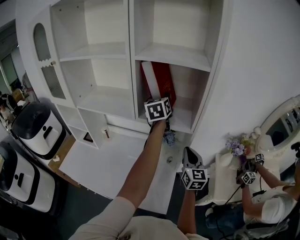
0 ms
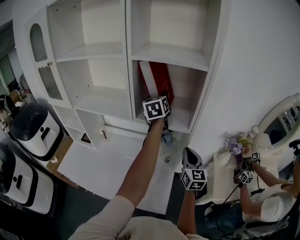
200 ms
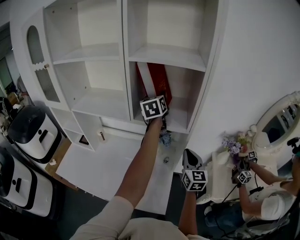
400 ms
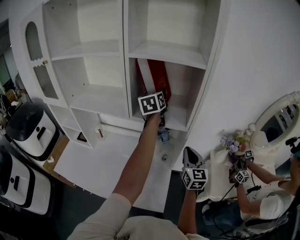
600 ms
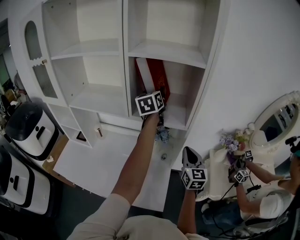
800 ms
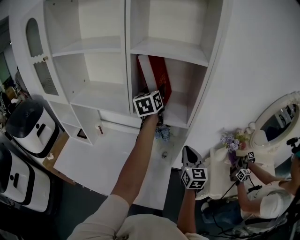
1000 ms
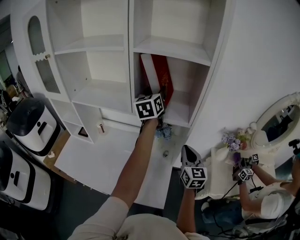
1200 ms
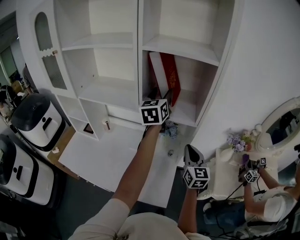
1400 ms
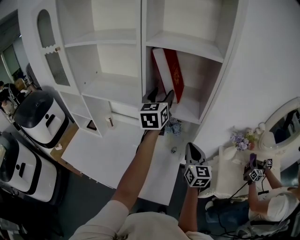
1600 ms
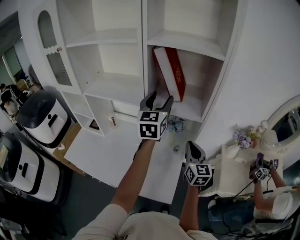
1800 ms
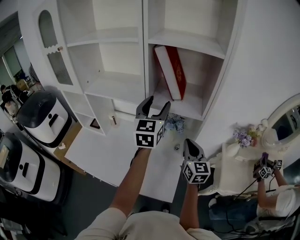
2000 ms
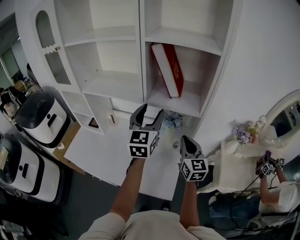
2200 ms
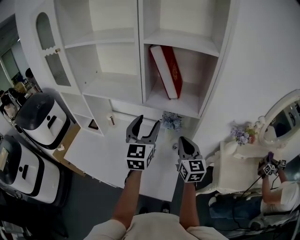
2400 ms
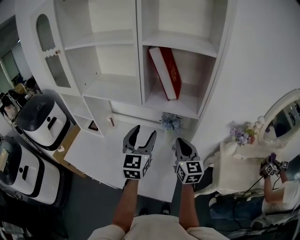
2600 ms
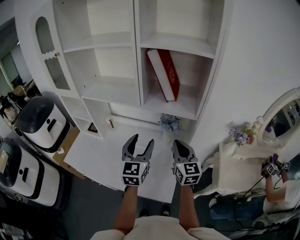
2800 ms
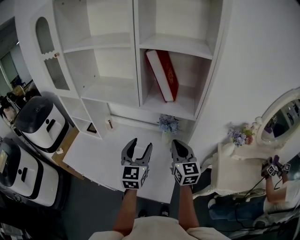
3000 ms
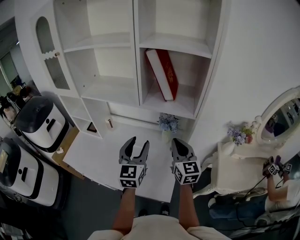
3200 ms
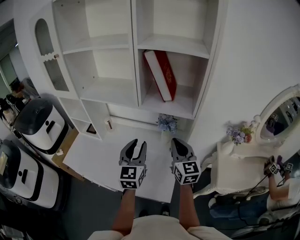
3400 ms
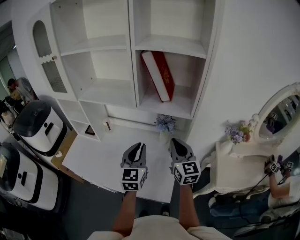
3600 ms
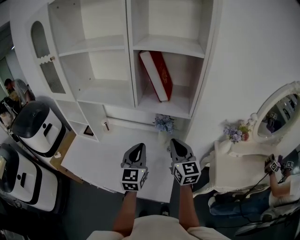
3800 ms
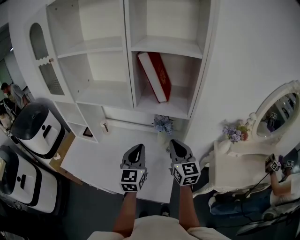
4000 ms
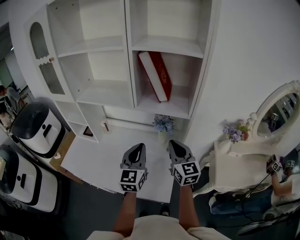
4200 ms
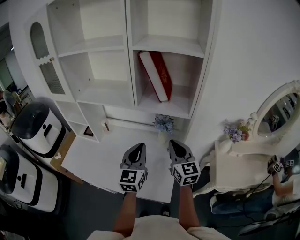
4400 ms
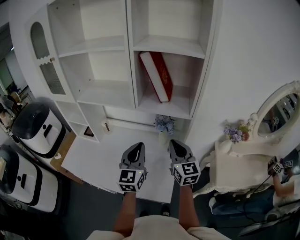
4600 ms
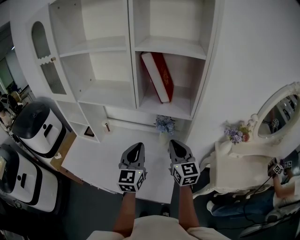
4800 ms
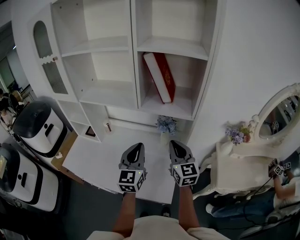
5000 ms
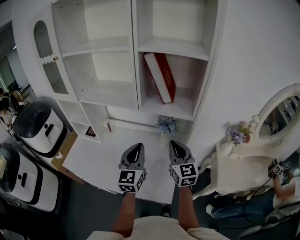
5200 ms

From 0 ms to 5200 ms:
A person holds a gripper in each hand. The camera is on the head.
From 0 ms to 1800 ms: The left gripper is displaced backward by approximately 10 cm.
From 1800 ms to 3400 ms: The right gripper moves to the left, about 5 cm. The left gripper is displaced backward and downward by some 20 cm, and closes up.
From 3400 ms to 5200 ms: The left gripper closes.

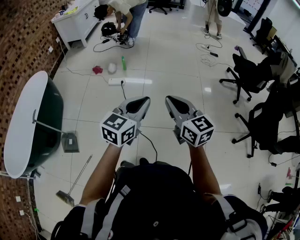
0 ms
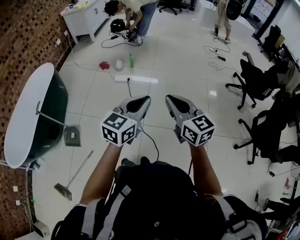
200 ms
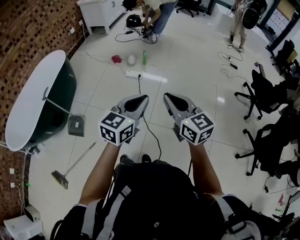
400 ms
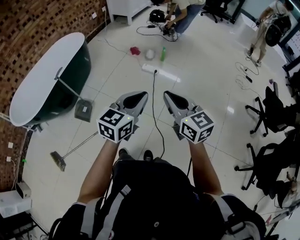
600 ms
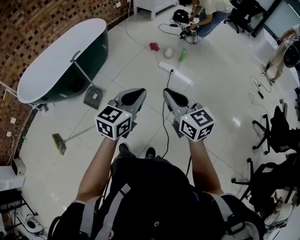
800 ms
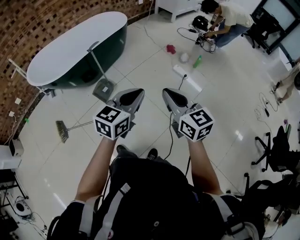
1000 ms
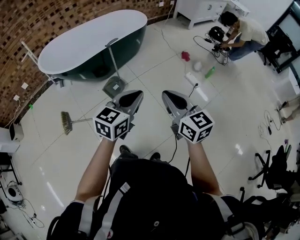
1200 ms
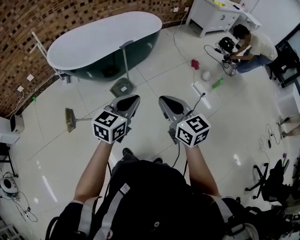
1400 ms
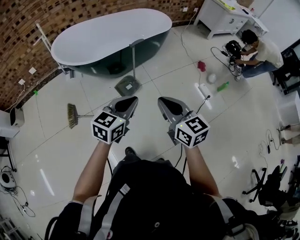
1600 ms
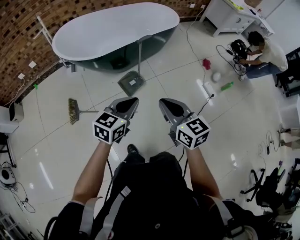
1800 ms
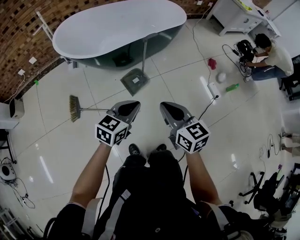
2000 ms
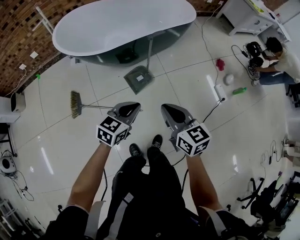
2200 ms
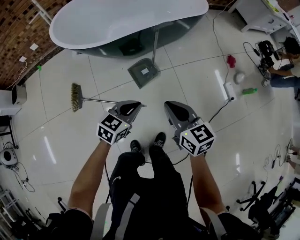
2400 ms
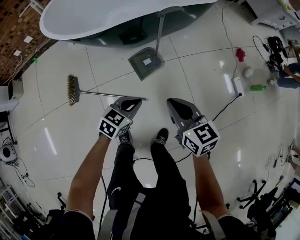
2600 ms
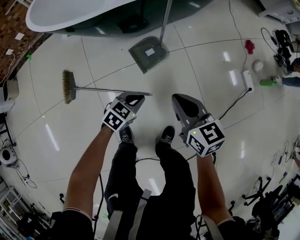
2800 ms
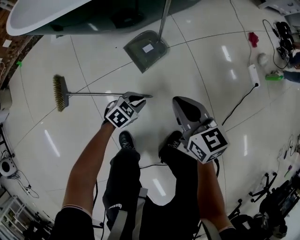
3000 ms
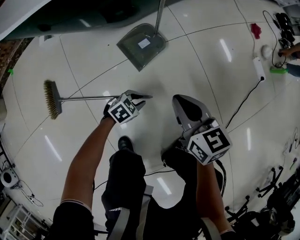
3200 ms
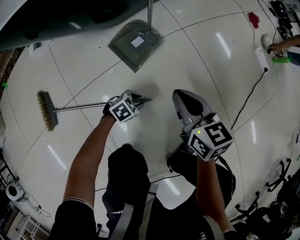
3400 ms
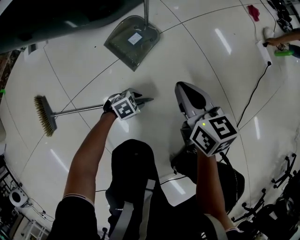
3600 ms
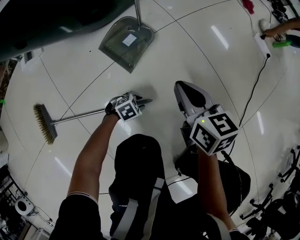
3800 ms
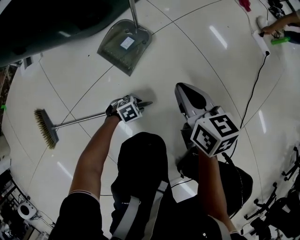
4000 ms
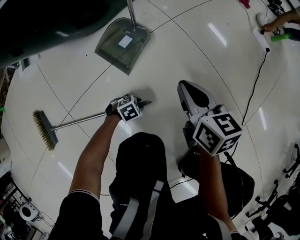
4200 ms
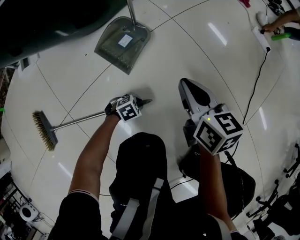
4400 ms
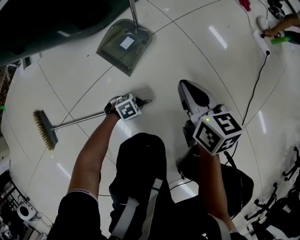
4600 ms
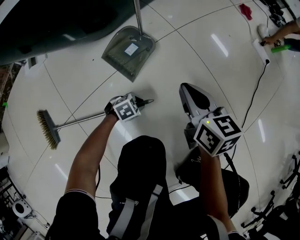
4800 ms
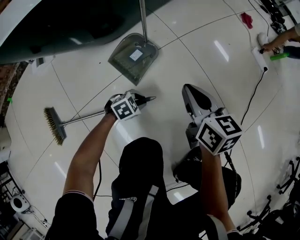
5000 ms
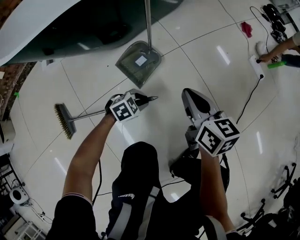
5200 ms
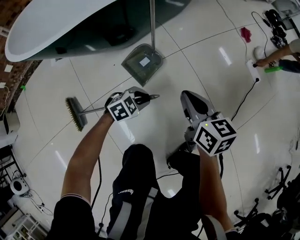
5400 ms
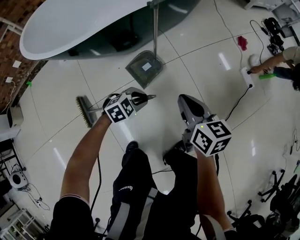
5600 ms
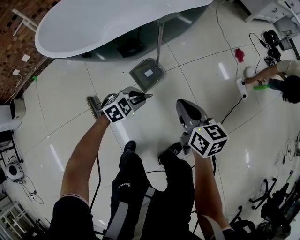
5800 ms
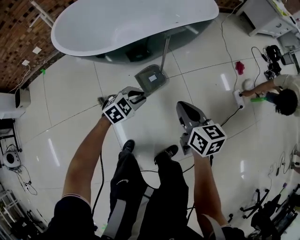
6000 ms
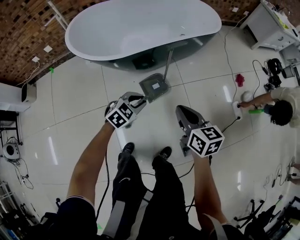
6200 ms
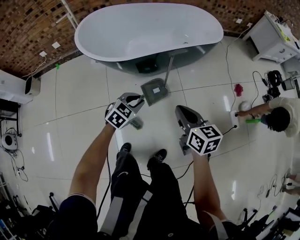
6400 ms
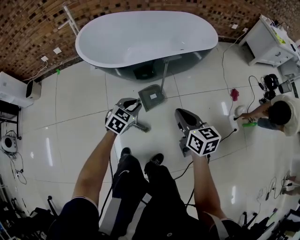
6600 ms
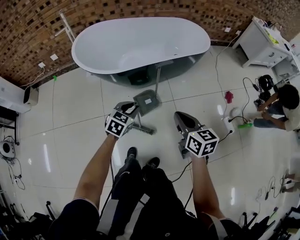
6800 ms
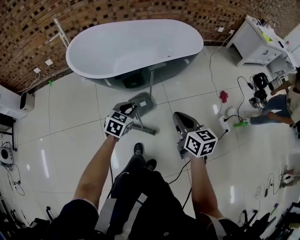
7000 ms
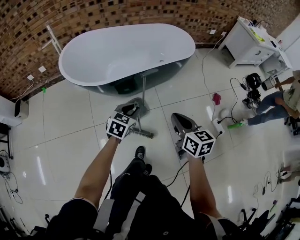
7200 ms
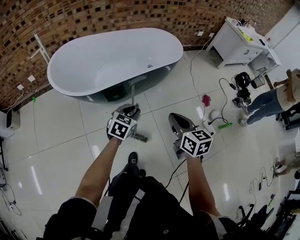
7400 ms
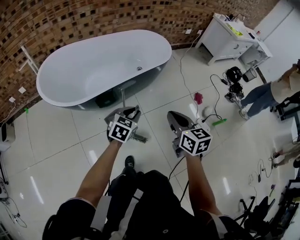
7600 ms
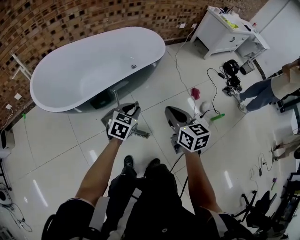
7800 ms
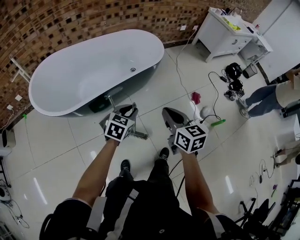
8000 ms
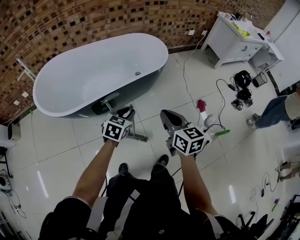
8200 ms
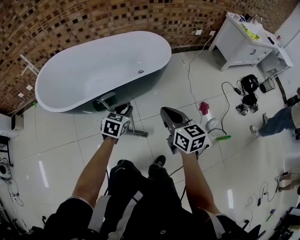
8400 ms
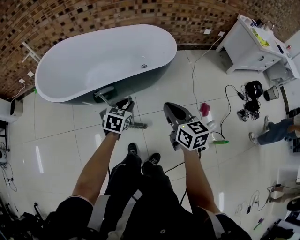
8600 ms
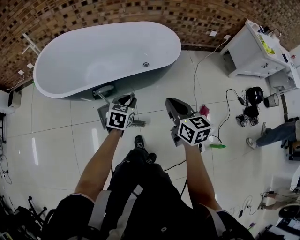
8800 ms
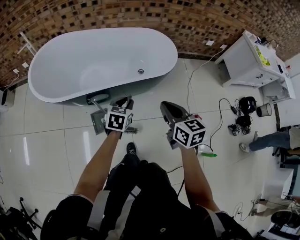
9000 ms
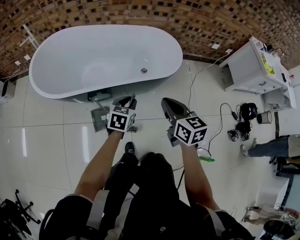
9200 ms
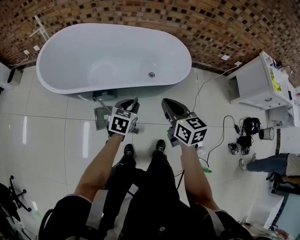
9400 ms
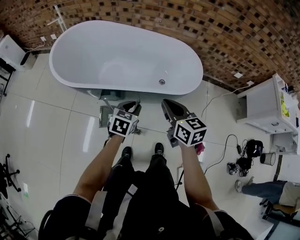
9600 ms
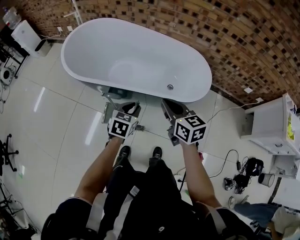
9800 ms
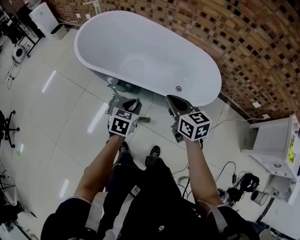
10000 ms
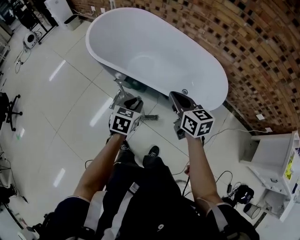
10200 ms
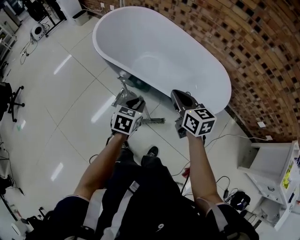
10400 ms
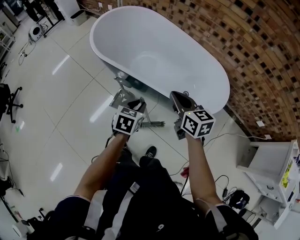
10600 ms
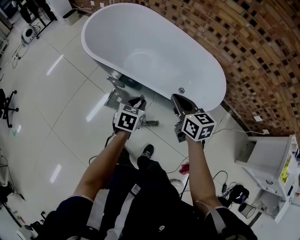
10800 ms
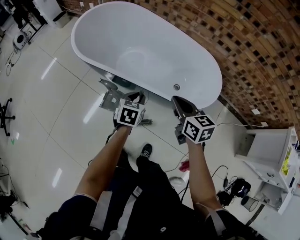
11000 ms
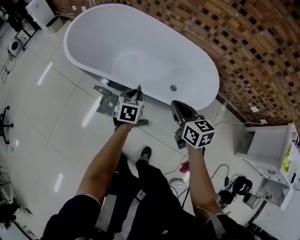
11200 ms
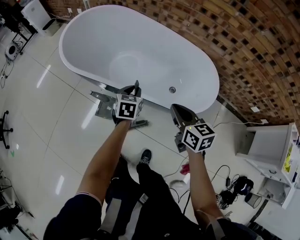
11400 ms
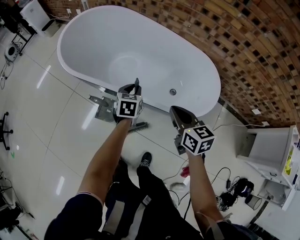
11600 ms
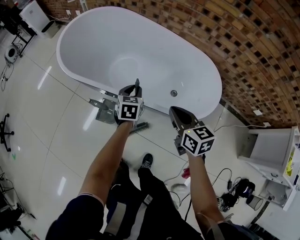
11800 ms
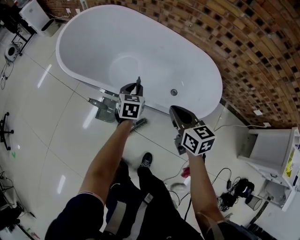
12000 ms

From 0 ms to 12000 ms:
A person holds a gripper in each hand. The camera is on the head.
From 0 ms to 1600 ms: The two grippers travel together, approximately 50 cm. The left gripper turns by roughly 60 degrees; the right gripper rotates about 60 degrees.
From 1600 ms to 3000 ms: The grippers both shift downward by approximately 50 cm. The left gripper tips its fingers downward by roughly 30 degrees.
From 3000 ms to 4400 ms: The right gripper shifts about 20 cm downward, and rotates approximately 30 degrees. Meanwhile the left gripper moves downward, roughly 30 cm, and rotates some 40 degrees.
From 4400 ms to 6000 ms: The two grippers go some 50 cm upward. The right gripper rotates approximately 20 degrees. The left gripper swivels approximately 40 degrees.
From 6000 ms to 7600 ms: The two grippers go some 25 cm upward, to the right and forward. The left gripper rotates about 30 degrees.
From 7600 ms to 9000 ms: The left gripper shifts by roughly 25 cm, and rotates approximately 30 degrees; the right gripper shifts by about 30 cm, and changes its angle by approximately 20 degrees.
From 9000 ms to 10400 ms: The right gripper changes place by some 20 cm, and turns by about 50 degrees. Meanwhile the left gripper changes its angle by approximately 40 degrees.
From 10400 ms to 12000 ms: The right gripper travels to the right and downward by approximately 10 cm; the left gripper goes roughly 25 cm forward, to the right and downward.

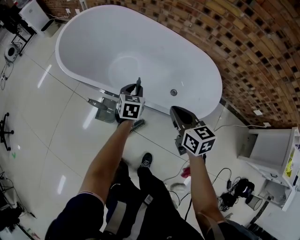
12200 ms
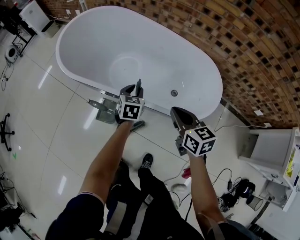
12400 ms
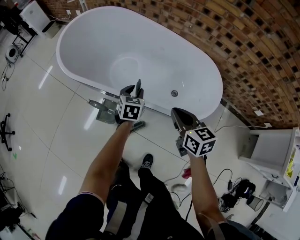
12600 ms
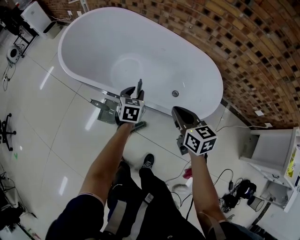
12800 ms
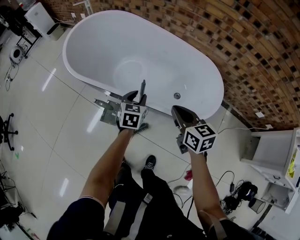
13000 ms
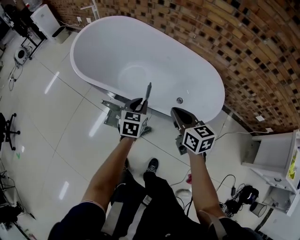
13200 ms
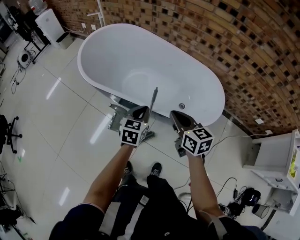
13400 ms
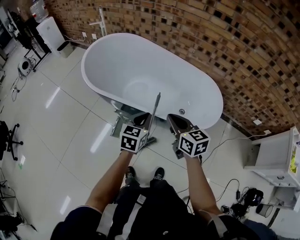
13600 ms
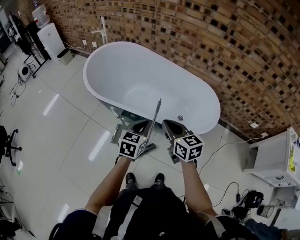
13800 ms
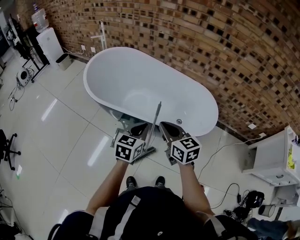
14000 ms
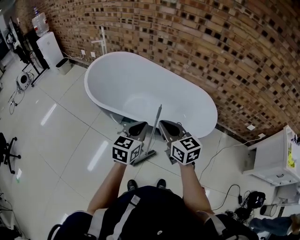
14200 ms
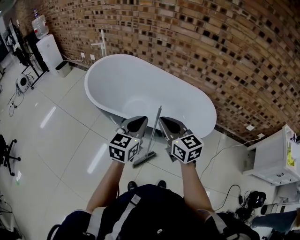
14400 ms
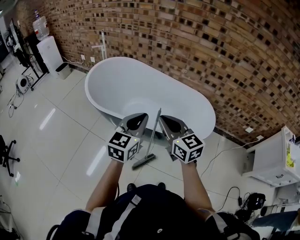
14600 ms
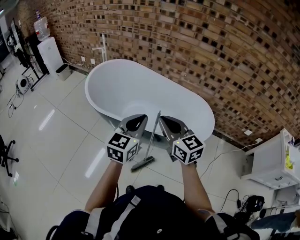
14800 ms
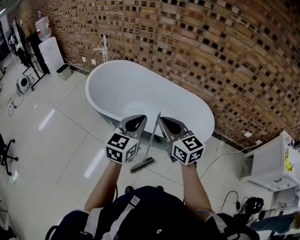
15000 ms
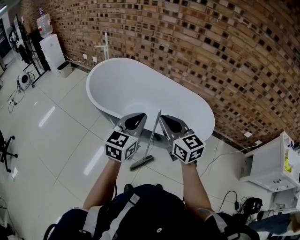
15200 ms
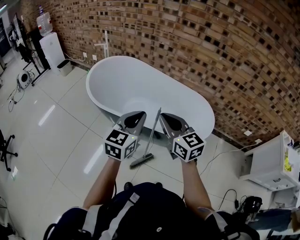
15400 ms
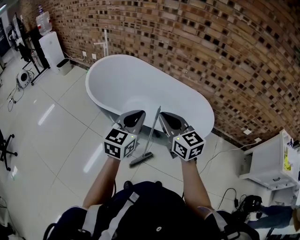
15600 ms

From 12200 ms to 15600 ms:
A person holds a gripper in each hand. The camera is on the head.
From 12200 ms to 13800 ms: The left gripper shifts approximately 25 cm upward, backward and to the left, and closes up; the right gripper travels to the left and upward by about 15 cm.
From 13800 ms to 15600 ms: Both grippers move upward, some 15 cm. The left gripper turns by about 20 degrees.

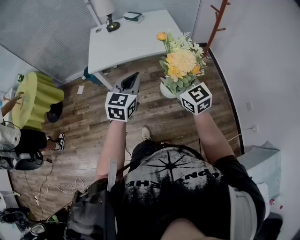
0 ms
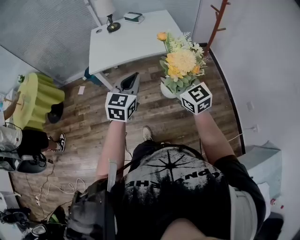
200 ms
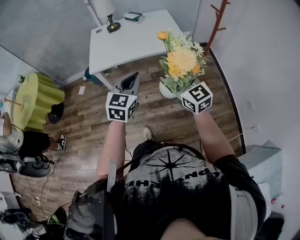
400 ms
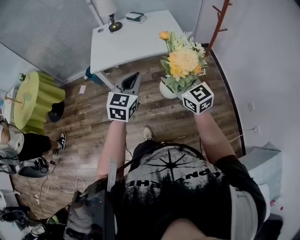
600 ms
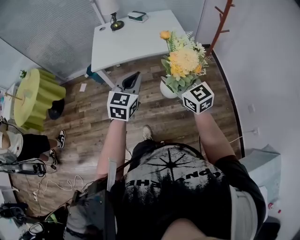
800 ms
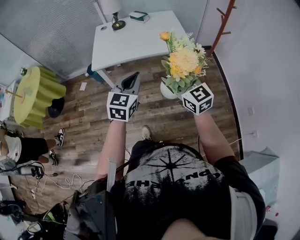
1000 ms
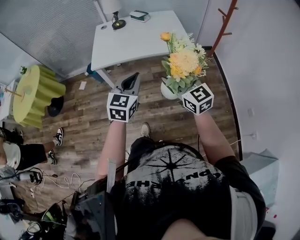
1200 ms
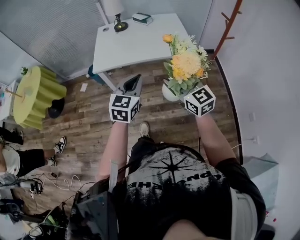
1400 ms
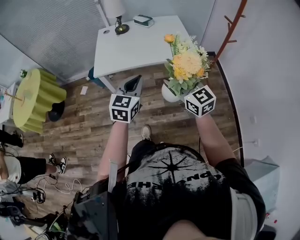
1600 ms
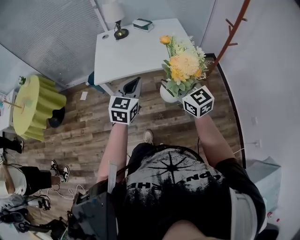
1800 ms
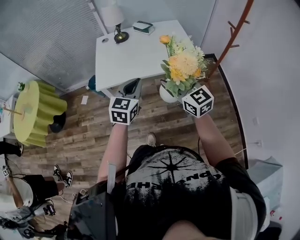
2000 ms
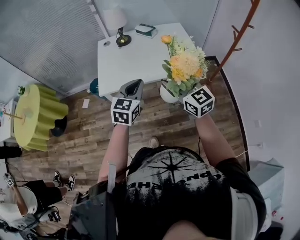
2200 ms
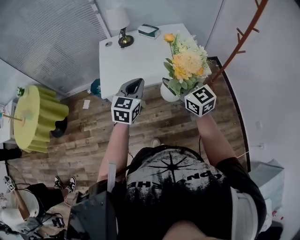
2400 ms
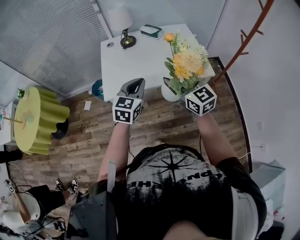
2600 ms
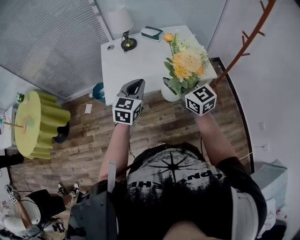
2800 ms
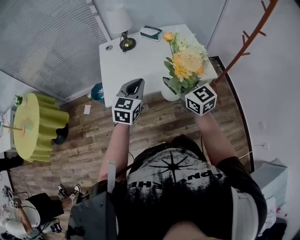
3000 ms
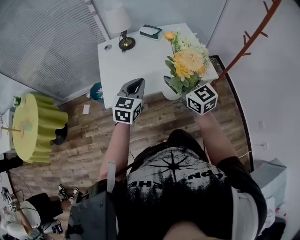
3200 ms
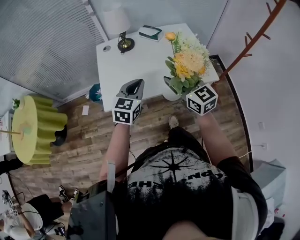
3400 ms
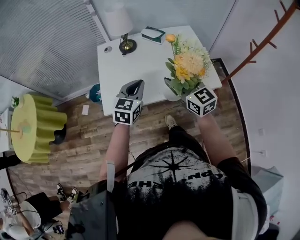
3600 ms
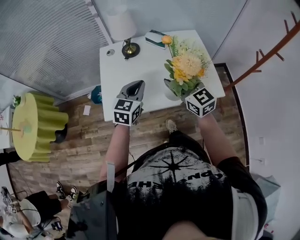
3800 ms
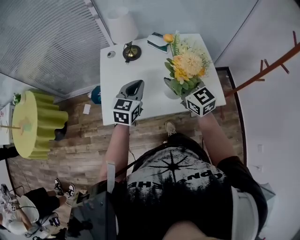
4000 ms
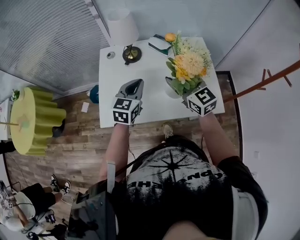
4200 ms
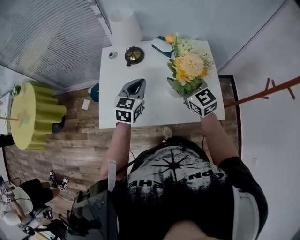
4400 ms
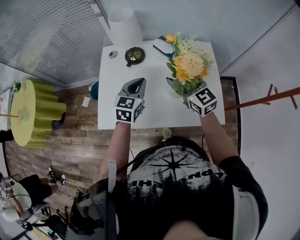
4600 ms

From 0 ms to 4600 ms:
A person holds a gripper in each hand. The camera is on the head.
From 0 ms to 1600 ms: The two grippers go about 5 cm forward.
From 1600 ms to 3000 ms: The grippers both shift forward and to the left by about 25 cm.
From 3000 ms to 4600 ms: The two grippers go about 25 cm forward.
